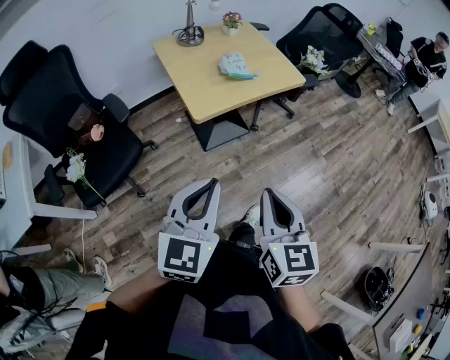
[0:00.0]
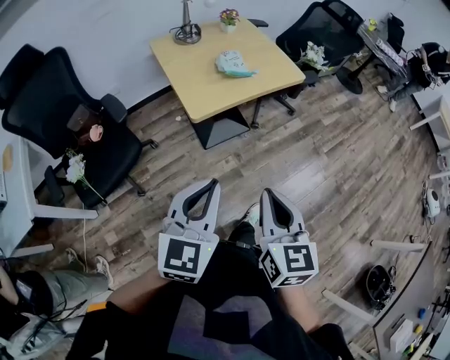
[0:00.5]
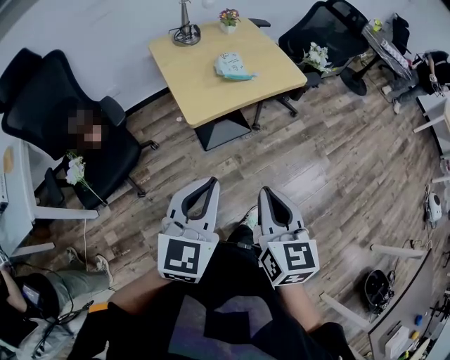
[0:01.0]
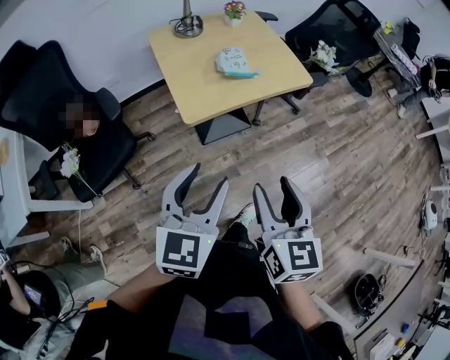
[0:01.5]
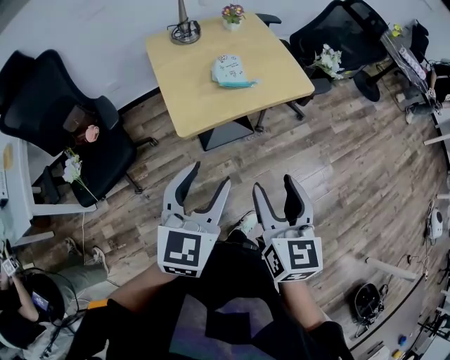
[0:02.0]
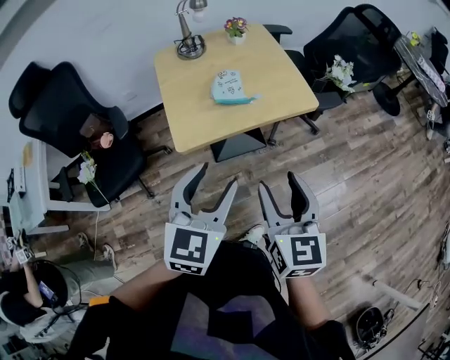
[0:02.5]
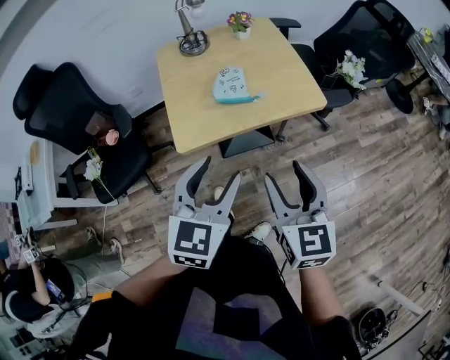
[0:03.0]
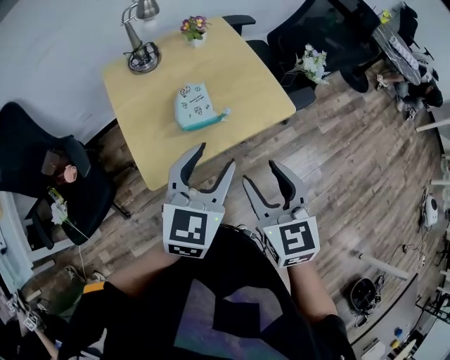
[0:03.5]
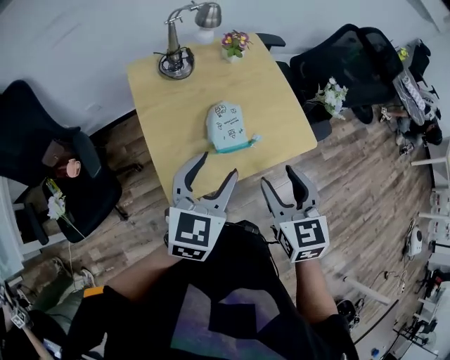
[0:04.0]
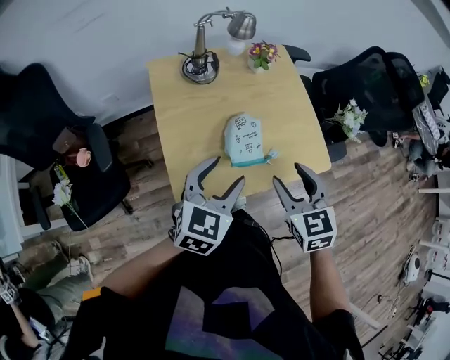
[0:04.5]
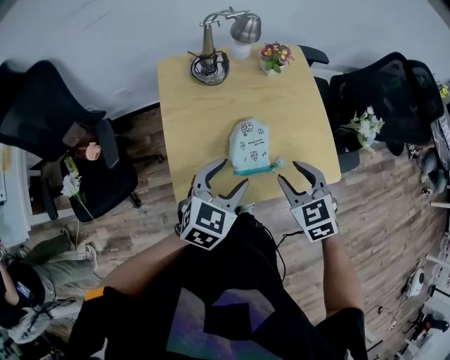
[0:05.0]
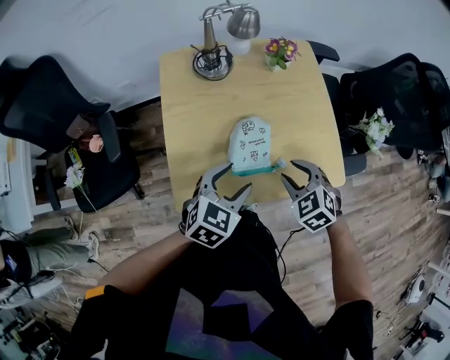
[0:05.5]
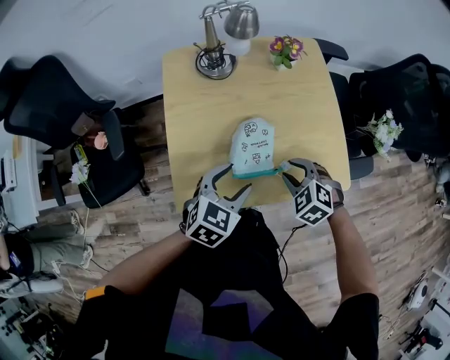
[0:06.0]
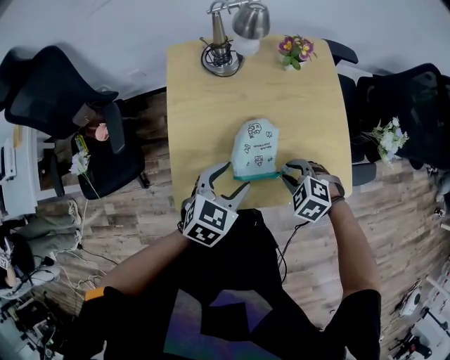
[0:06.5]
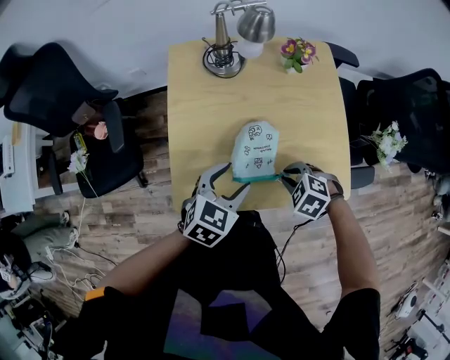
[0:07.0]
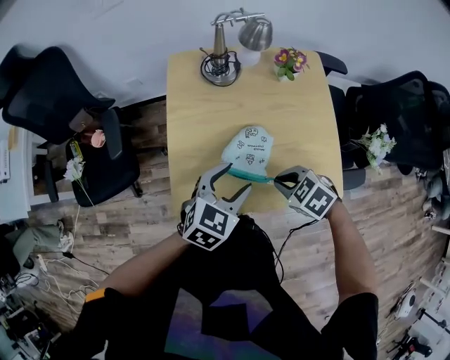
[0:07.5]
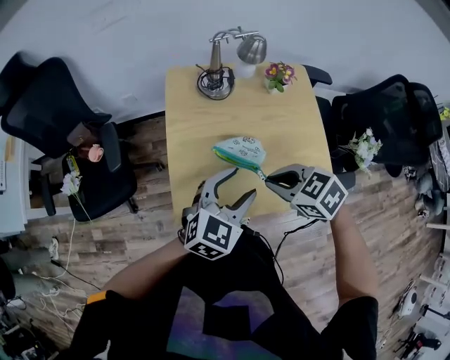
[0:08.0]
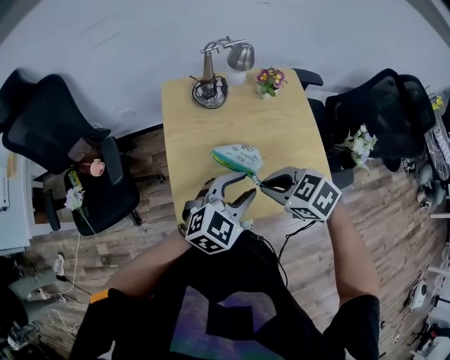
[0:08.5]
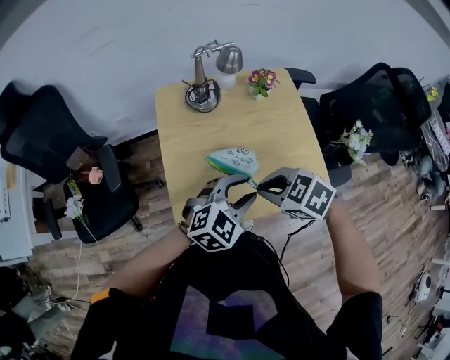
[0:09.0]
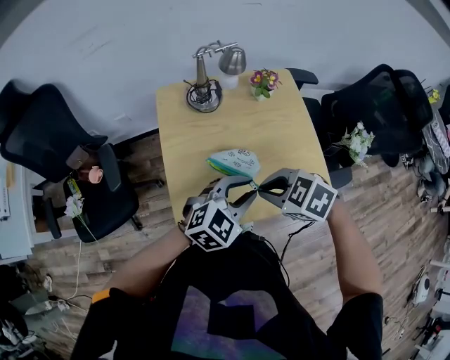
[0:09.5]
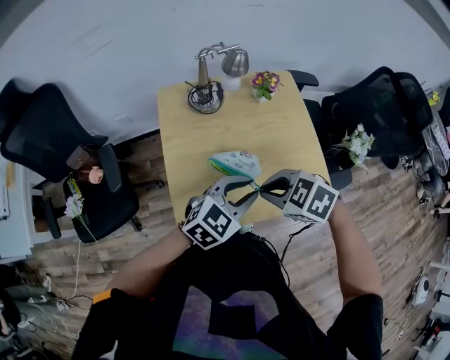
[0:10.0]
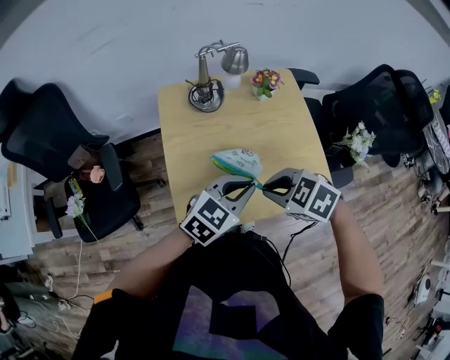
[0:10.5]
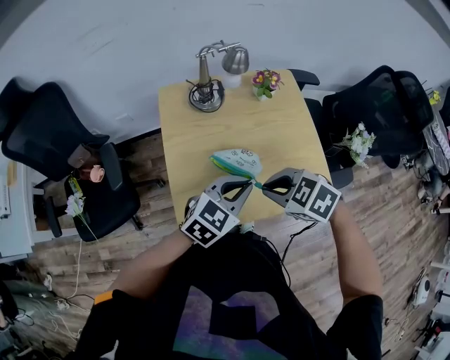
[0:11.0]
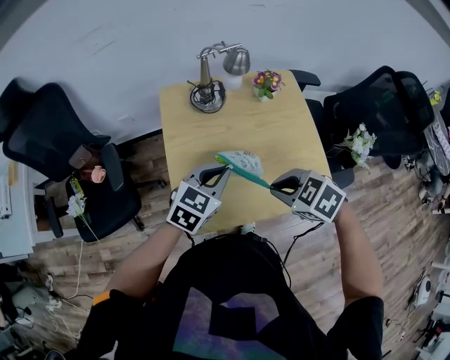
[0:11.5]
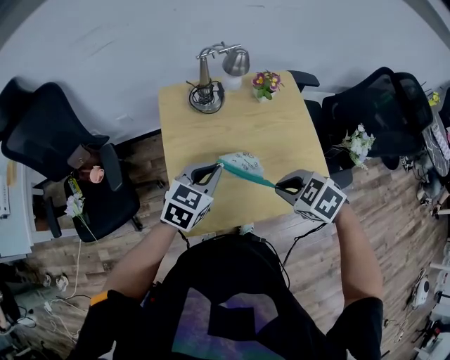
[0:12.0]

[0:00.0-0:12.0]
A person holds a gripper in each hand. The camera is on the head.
0.0 to 2.0 s: Both grippers move forward and to the right, approximately 15 cm. The left gripper opens up, while the right gripper opens its fingers.
2.0 to 4.0 s: The grippers both shift forward by some 30 cm. The right gripper changes its angle by about 20 degrees.
4.0 to 6.0 s: The two grippers go some 20 cm downward and forward. The left gripper swivels roughly 20 degrees, while the right gripper tips its fingers downward by about 30 degrees, and closes up.
6.0 to 8.0 s: The left gripper shifts some 10 cm upward. The right gripper travels upward and to the left by roughly 15 cm, swivels about 30 degrees, and closes up.
8.0 to 10.0 s: The left gripper closes its fingers.
10.0 to 12.0 s: The left gripper changes place by about 10 cm, and swivels some 20 degrees, while the right gripper moves approximately 5 cm.

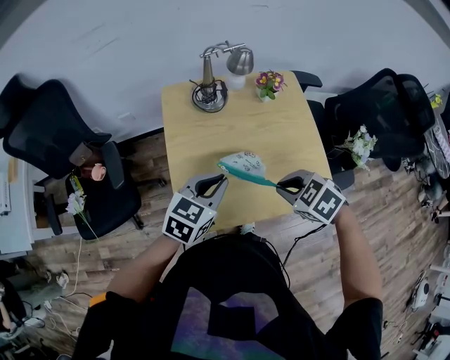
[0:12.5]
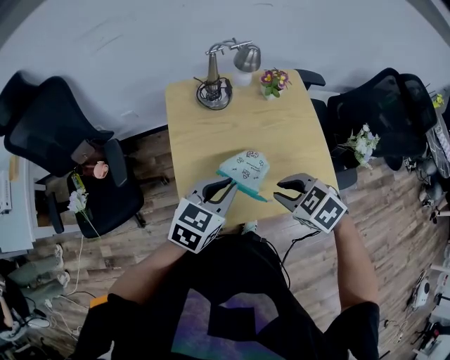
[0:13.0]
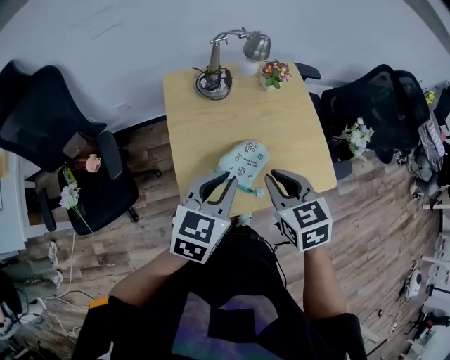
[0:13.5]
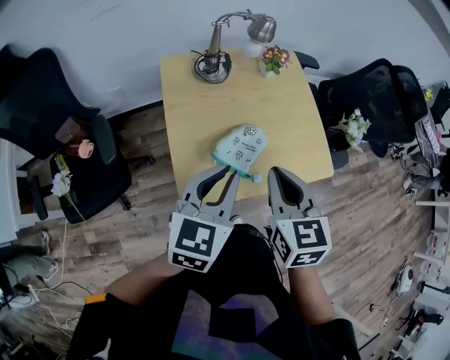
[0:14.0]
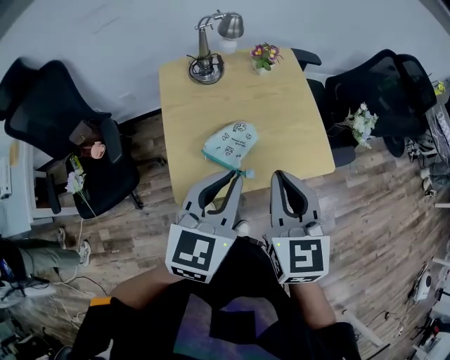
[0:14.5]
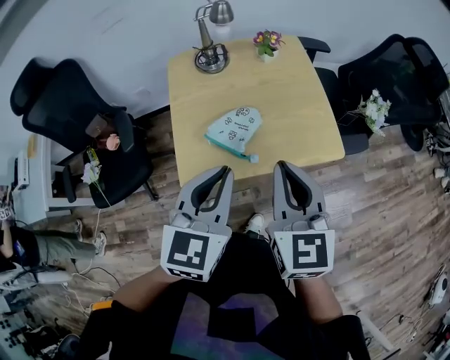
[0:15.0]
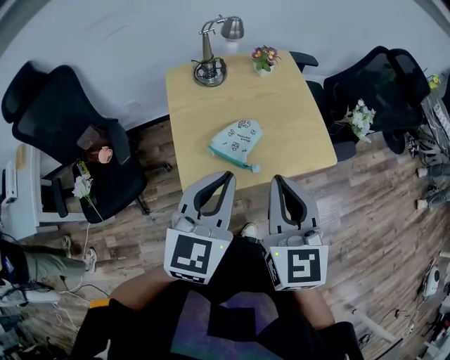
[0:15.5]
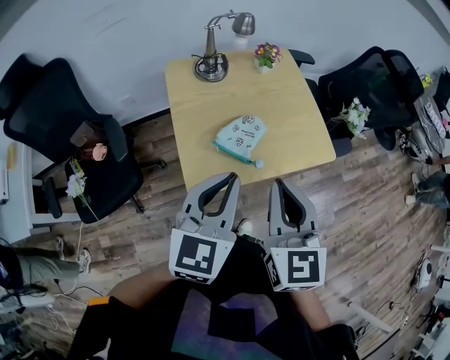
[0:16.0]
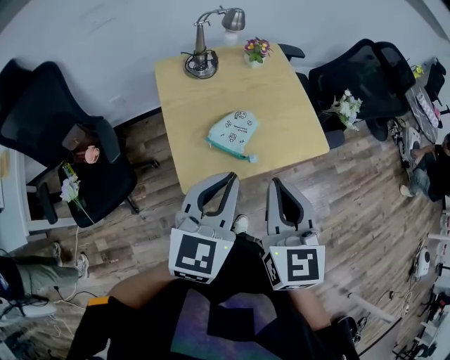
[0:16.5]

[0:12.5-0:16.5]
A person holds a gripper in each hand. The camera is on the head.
12.5 to 14.5 s: The grippers both shift upward and backward by some 15 cm. The right gripper angles its fingers upward, by about 40 degrees.
14.5 to 16.5 s: The grippers both shift backward by approximately 5 cm.

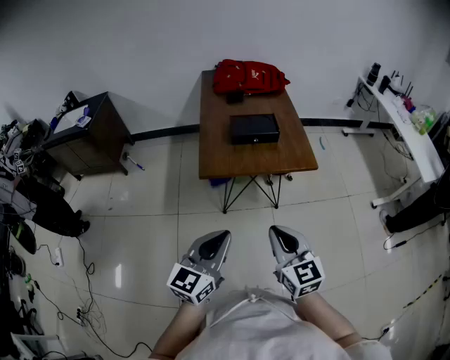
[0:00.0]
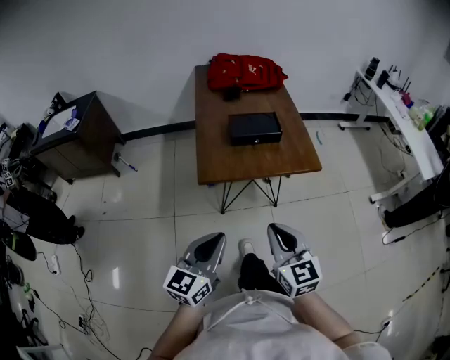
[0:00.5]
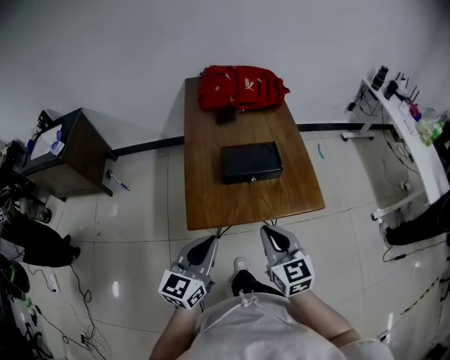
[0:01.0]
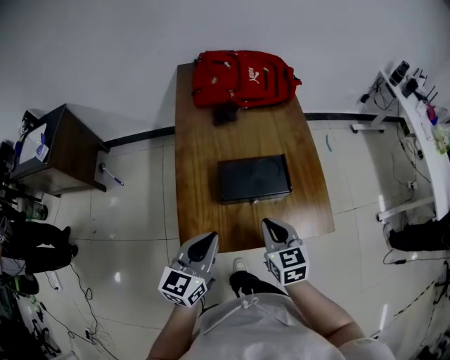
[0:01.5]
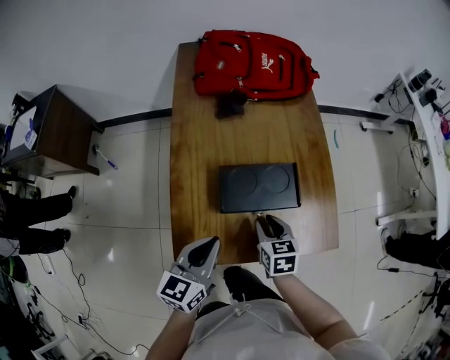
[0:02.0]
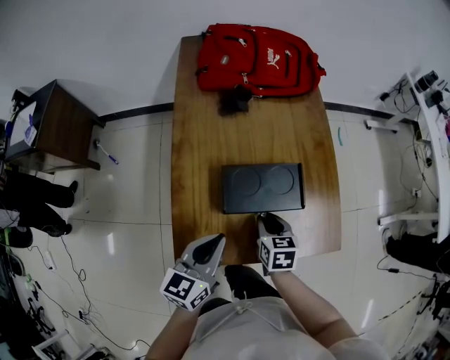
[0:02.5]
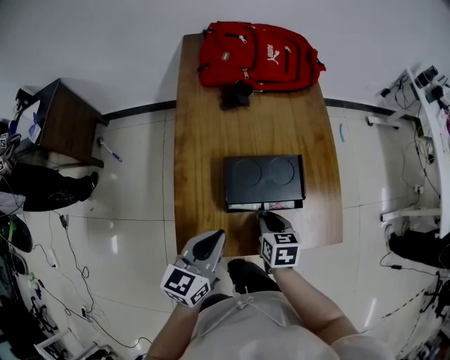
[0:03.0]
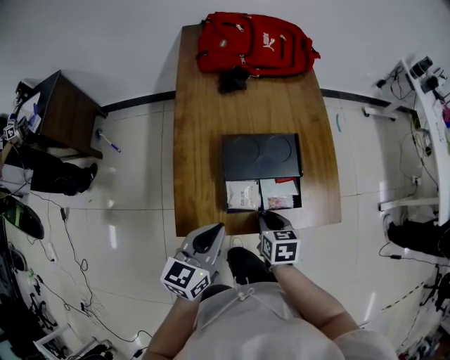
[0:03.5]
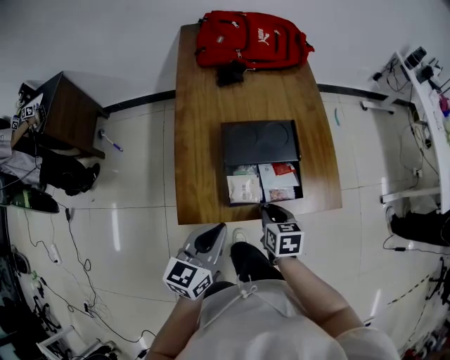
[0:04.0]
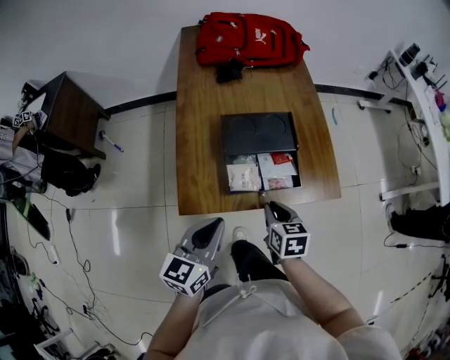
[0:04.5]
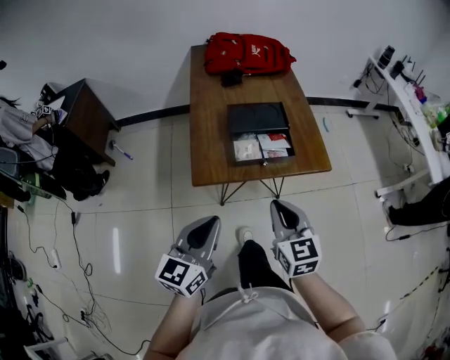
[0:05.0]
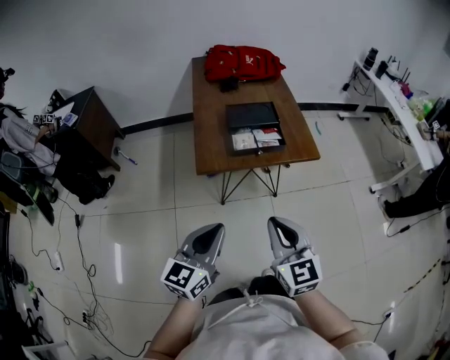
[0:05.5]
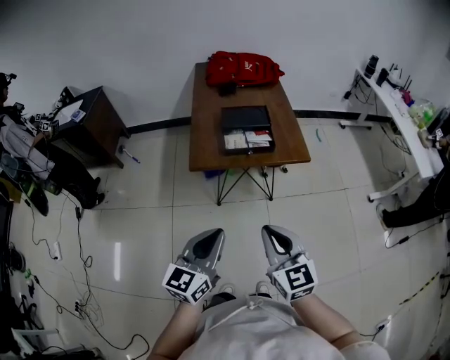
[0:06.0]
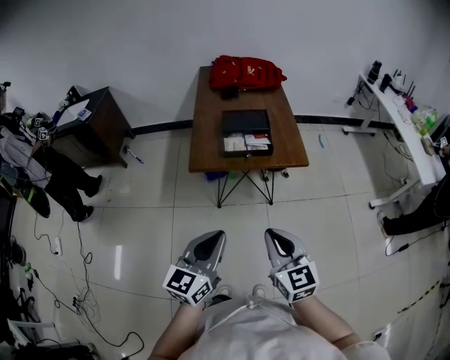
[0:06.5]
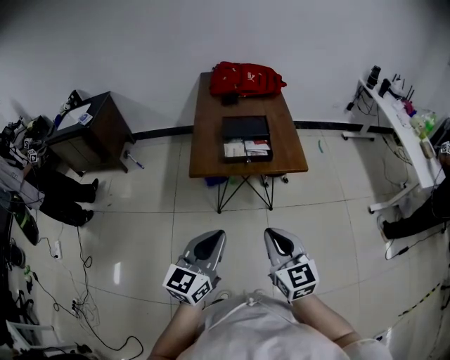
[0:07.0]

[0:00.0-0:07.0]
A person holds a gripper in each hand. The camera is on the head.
0.0 to 2.0 s: The two grippers travel together, forward, some 50 cm. The right gripper goes some 25 cm downward, tilts its fingers approximately 30 degrees downward, and opens its fingers.
2.0 to 3.5 s: Both grippers travel together backward, roughly 5 cm.
3.5 to 5.0 s: The left gripper shifts approximately 25 cm backward. Meanwhile the right gripper shifts roughly 30 cm backward and upward, and tilts its fingers approximately 30 degrees upward.
5.0 to 7.0 s: The right gripper heads backward, covering about 20 cm, while the left gripper travels backward and to the right by some 20 cm.

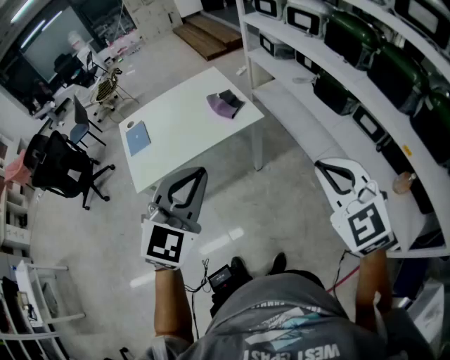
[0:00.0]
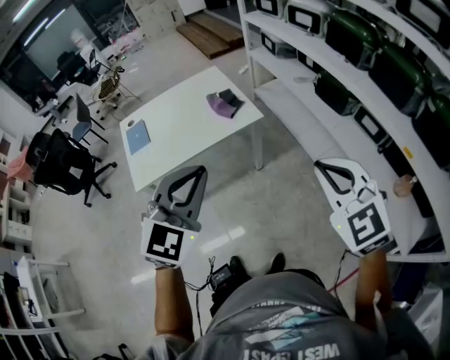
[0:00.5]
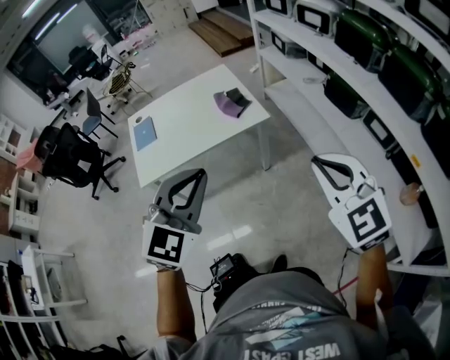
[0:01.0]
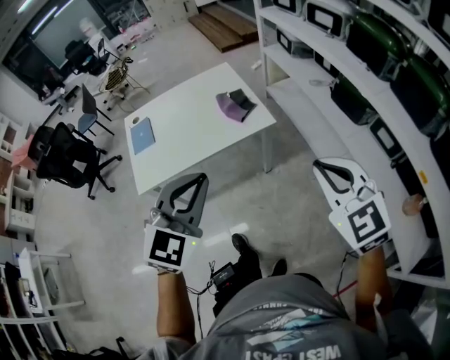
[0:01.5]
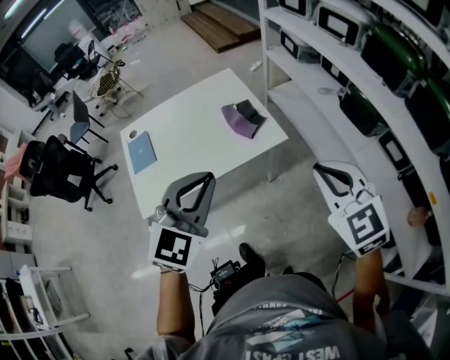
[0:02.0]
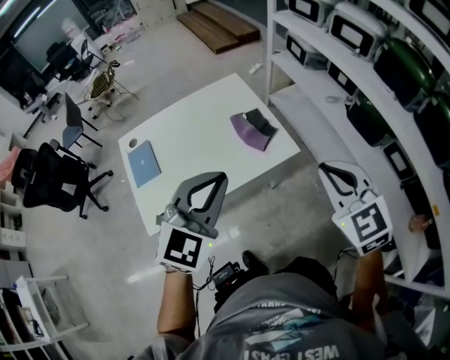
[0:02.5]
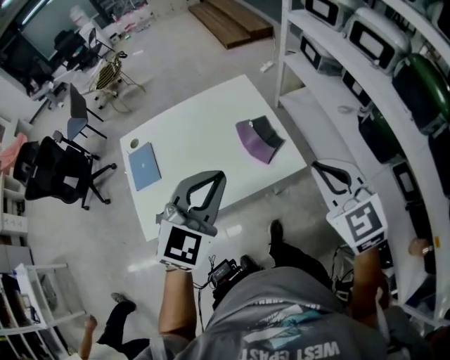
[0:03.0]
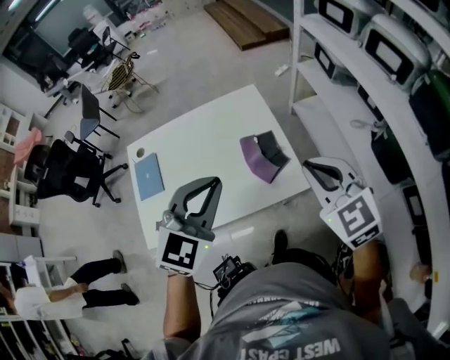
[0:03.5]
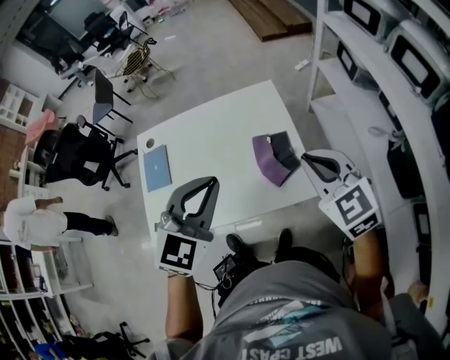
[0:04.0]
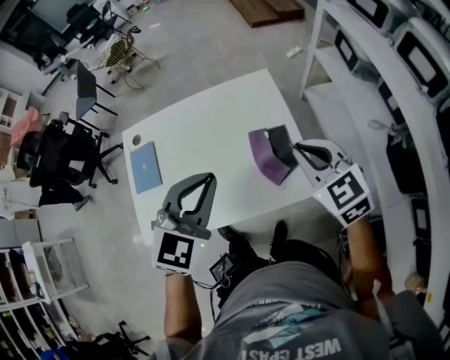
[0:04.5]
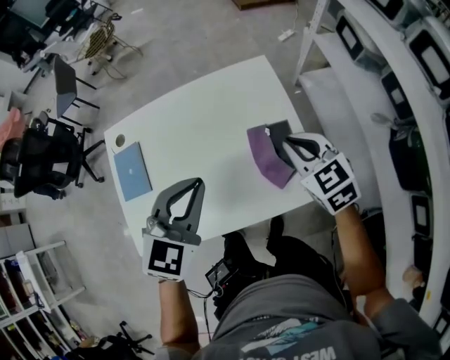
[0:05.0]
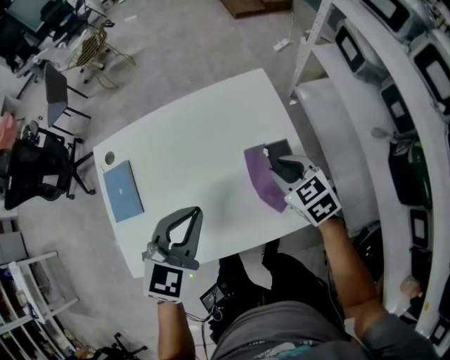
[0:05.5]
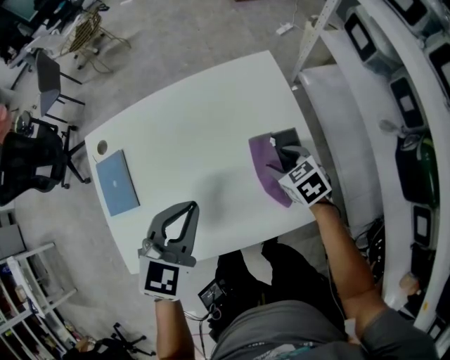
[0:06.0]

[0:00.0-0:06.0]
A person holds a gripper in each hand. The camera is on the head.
0.0 to 2.0 s: The grippers both shift forward by roughly 20 cm.
2.0 to 4.0 s: The two grippers go some 30 cm forward.
4.0 to 6.0 s: The right gripper goes some 35 cm downward and forward, points its fingers roughly 30 degrees further downward, and opens its fingers, while the left gripper heads downward, forward and to the left, covering some 25 cm.
